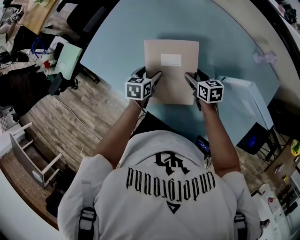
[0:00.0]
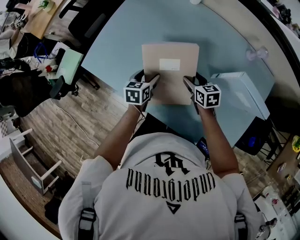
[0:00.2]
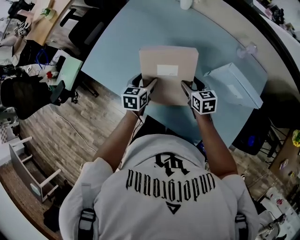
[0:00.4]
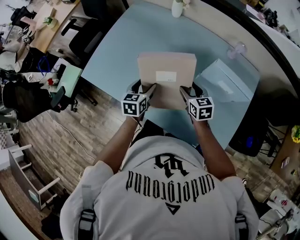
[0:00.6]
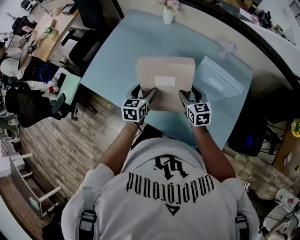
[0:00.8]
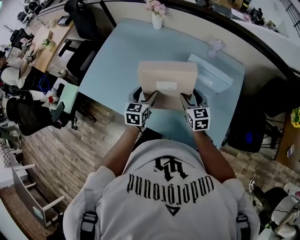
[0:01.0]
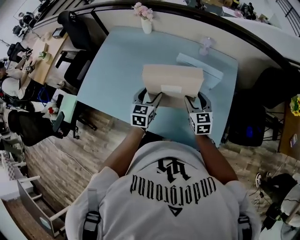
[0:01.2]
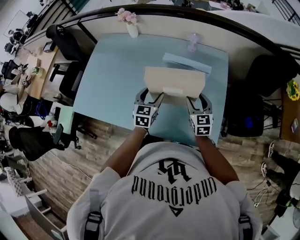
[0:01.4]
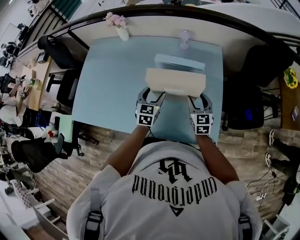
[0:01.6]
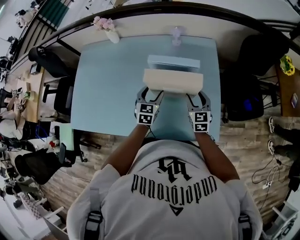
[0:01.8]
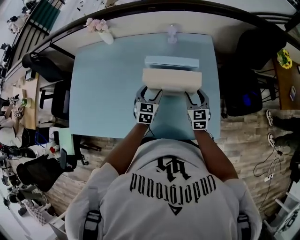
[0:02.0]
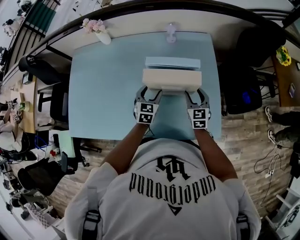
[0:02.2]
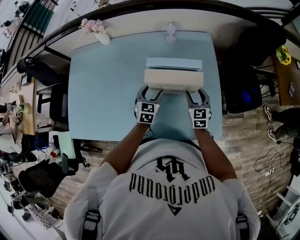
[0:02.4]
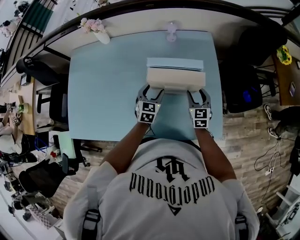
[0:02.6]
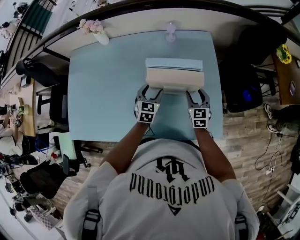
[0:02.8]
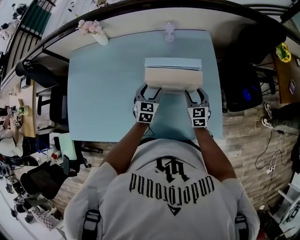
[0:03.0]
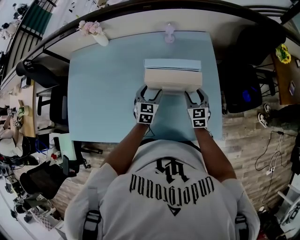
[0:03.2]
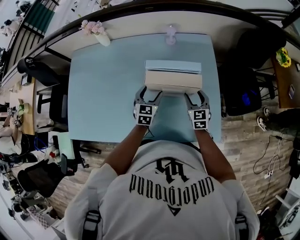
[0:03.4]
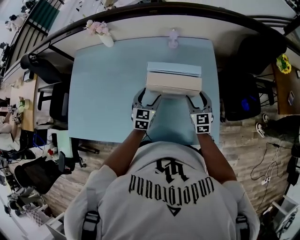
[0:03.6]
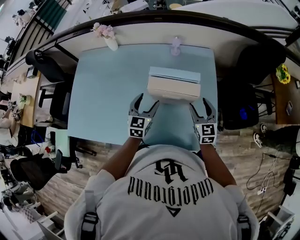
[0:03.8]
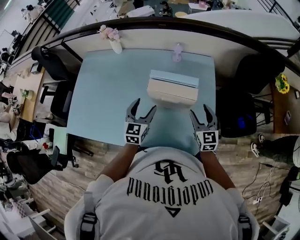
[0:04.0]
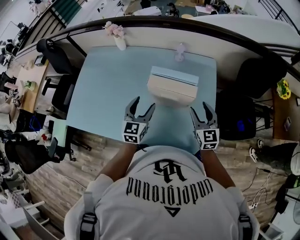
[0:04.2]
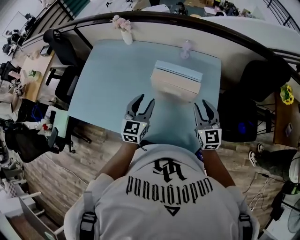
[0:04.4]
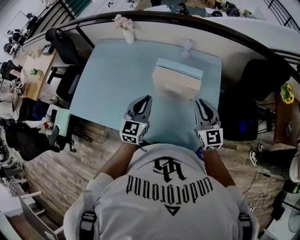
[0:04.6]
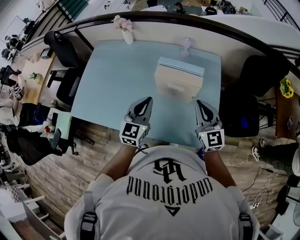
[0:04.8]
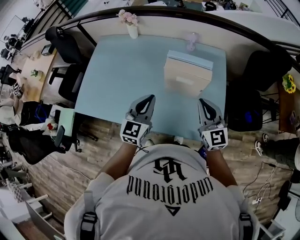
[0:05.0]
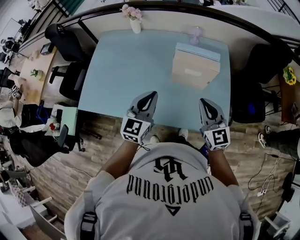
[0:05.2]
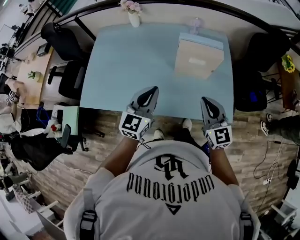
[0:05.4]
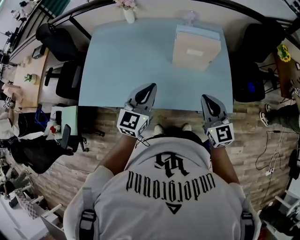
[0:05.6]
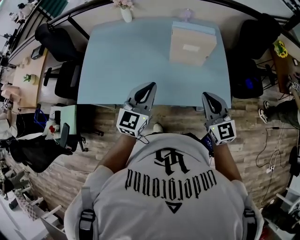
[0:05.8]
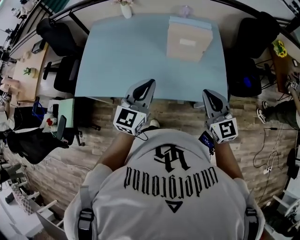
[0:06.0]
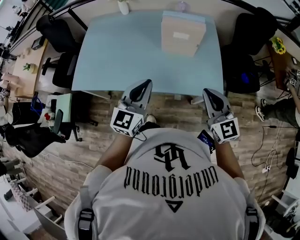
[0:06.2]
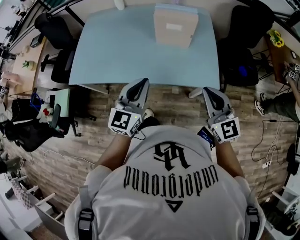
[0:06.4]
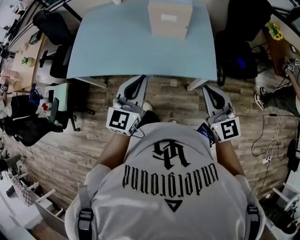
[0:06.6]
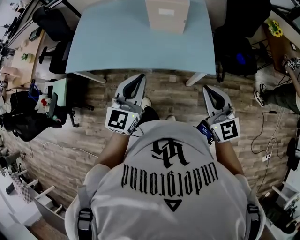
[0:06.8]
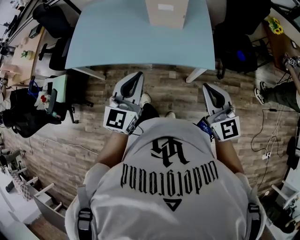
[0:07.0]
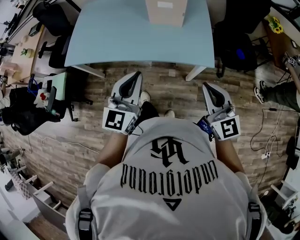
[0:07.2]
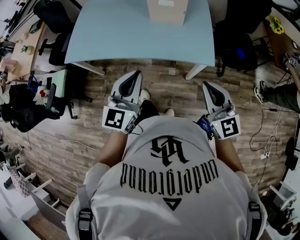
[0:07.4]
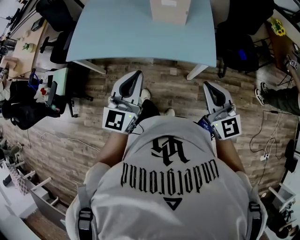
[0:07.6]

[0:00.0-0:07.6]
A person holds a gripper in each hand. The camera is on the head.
0:00.0 to 0:01.6: The right gripper ends up about 40 cm from where it was, and swivels approximately 50 degrees. Meanwhile the left gripper shifts by approximately 40 cm, and twists some 40 degrees clockwise, seen from behind.
0:01.6 to 0:03.0: The left gripper shifts about 10 cm downward and forward. The right gripper travels downward by about 5 cm.
0:03.0 to 0:04.6: The grippers both shift upward and backward by roughly 25 cm. The left gripper changes its angle by some 30 degrees, and closes up; the right gripper rotates approximately 30 degrees, and closes up.
0:04.6 to 0:06.0: The two grippers go roughly 25 cm backward and to the left.
0:06.0 to 0:07.6: The left gripper moves backward, about 20 cm, while the right gripper shifts some 25 cm backward and to the right.

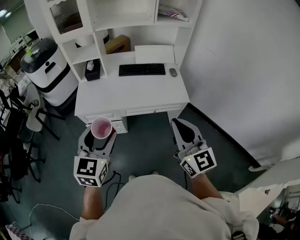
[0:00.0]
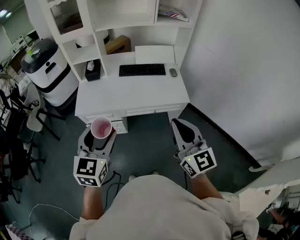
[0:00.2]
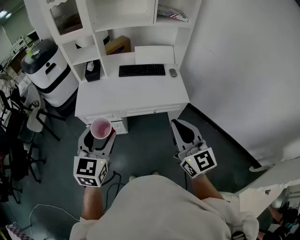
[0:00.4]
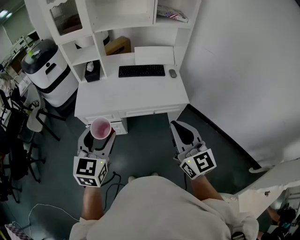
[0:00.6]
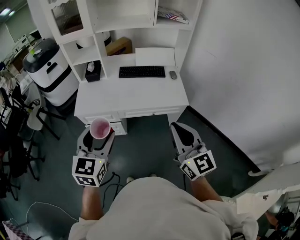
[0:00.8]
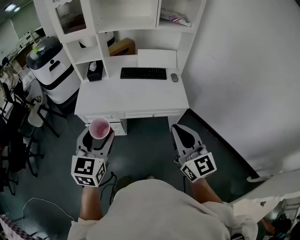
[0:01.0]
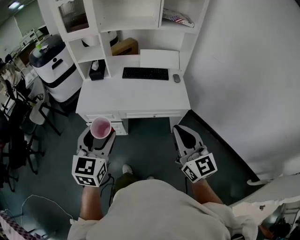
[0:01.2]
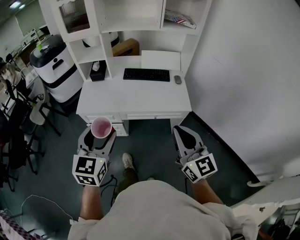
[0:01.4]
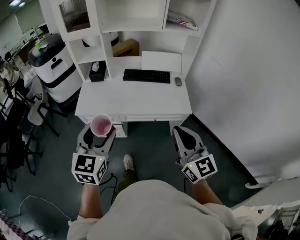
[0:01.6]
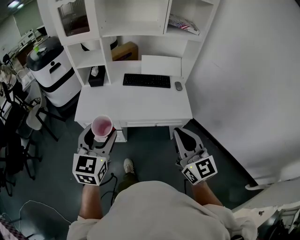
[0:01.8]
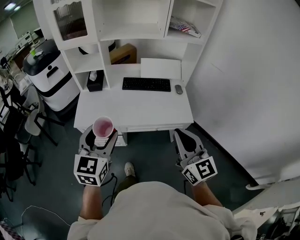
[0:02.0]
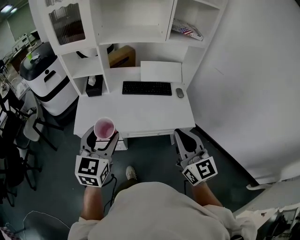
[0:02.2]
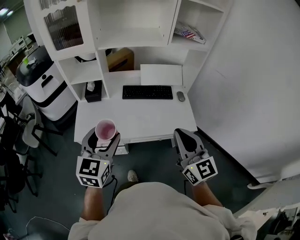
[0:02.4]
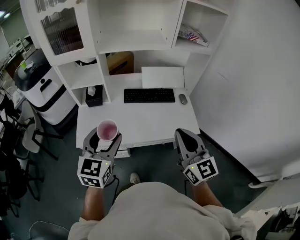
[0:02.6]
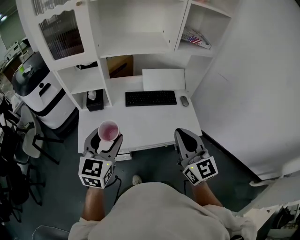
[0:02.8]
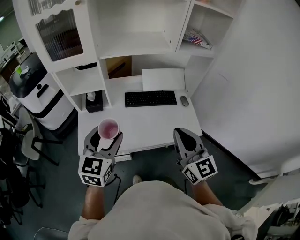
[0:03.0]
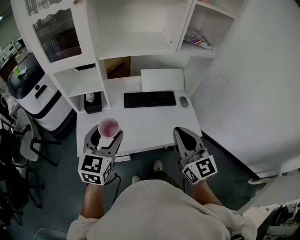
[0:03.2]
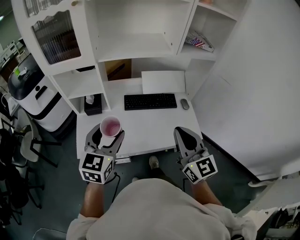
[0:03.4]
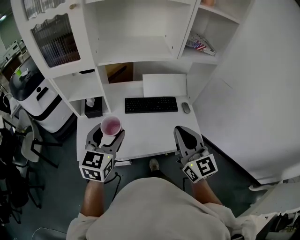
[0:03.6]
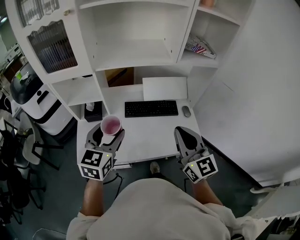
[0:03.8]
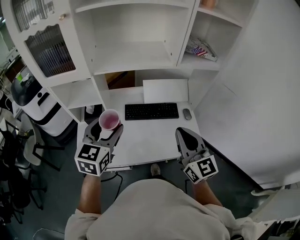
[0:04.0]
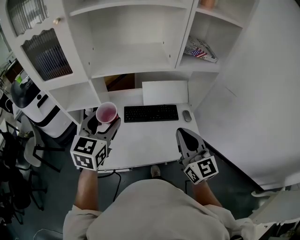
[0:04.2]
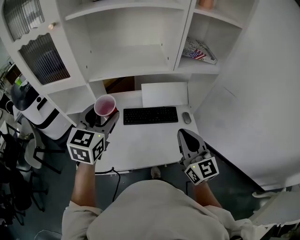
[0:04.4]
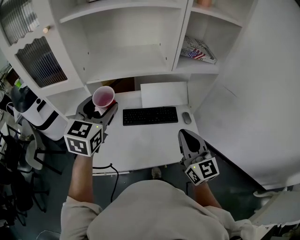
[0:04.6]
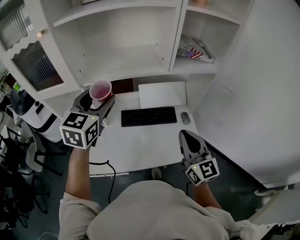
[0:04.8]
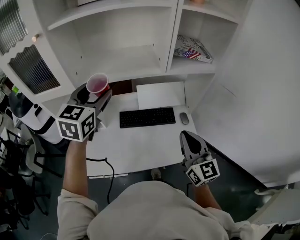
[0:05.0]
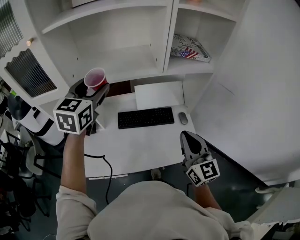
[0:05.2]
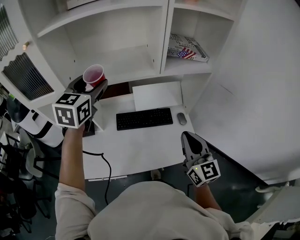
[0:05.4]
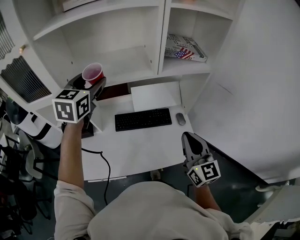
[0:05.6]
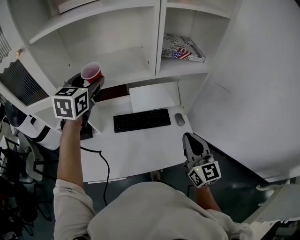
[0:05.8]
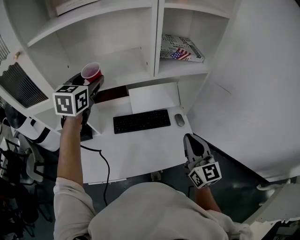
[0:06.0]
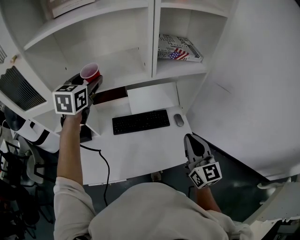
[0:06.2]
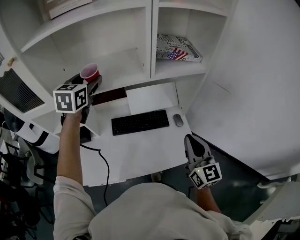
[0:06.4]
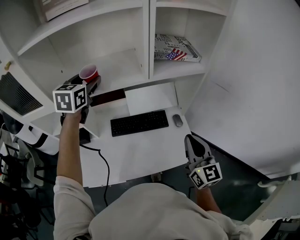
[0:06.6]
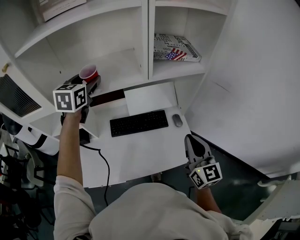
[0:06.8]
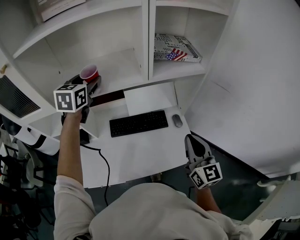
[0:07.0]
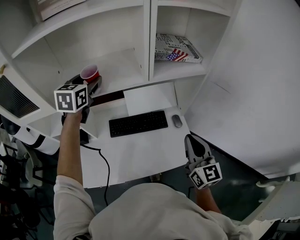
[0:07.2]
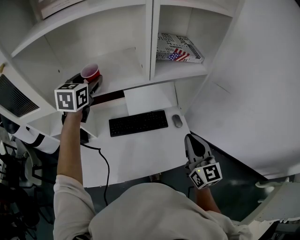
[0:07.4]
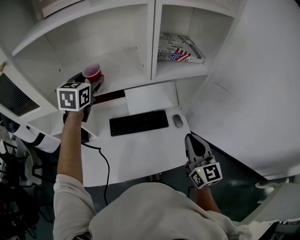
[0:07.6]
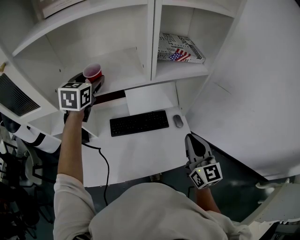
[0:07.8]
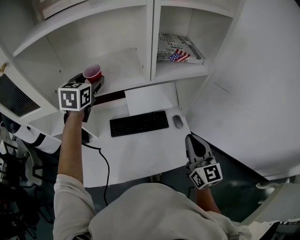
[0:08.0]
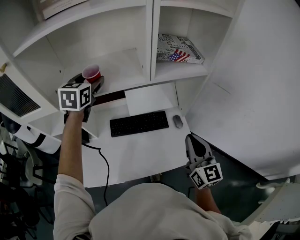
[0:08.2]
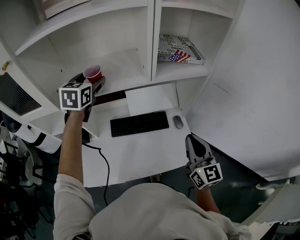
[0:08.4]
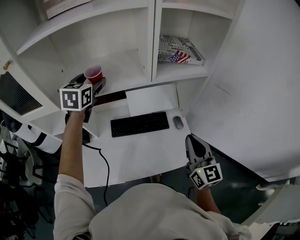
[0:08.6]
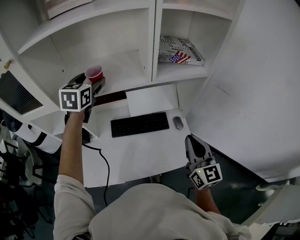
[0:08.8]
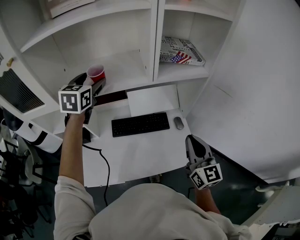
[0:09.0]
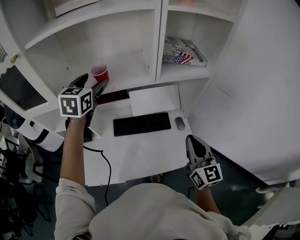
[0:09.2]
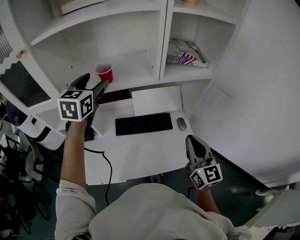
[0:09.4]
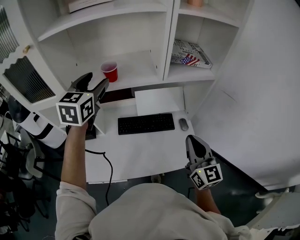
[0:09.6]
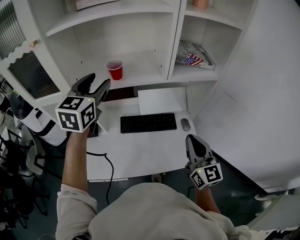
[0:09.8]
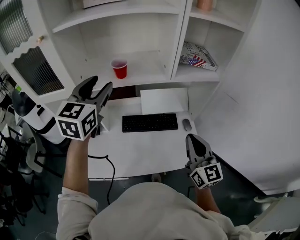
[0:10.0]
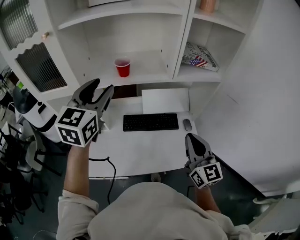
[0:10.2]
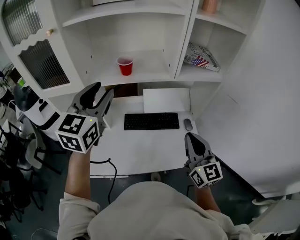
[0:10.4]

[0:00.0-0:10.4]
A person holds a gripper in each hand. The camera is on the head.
0:00.0 to 0:01.4: The grippers stay close to where they were, moving slightly.
0:01.4 to 0:03.0: The left gripper is displaced forward by about 30 cm. Meanwhile the right gripper travels forward and to the left by about 30 cm.
0:03.0 to 0:04.4: The right gripper heads forward and to the right, covering some 15 cm, while the left gripper travels forward by about 20 cm.
0:04.4 to 0:06.0: The right gripper heads to the right, covering about 10 cm. The left gripper travels forward by some 20 cm.
0:06.0 to 0:07.4: The left gripper shifts approximately 5 cm forward.
0:07.4 to 0:09.0: The grippers stay close to where they were, moving slightly.
0:09.0 to 0:10.4: The left gripper goes some 20 cm backward and upward, and closes its fingers, while the right gripper moves to the left, approximately 10 cm.

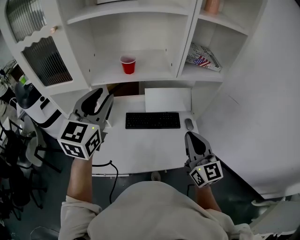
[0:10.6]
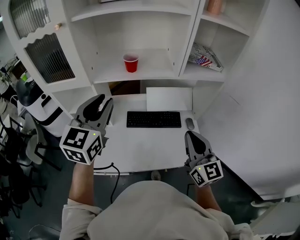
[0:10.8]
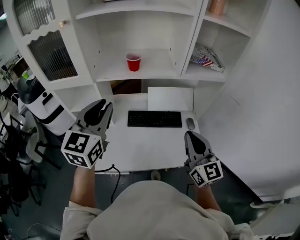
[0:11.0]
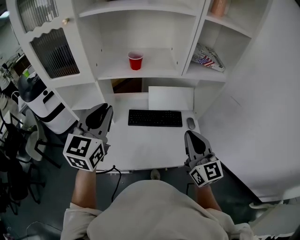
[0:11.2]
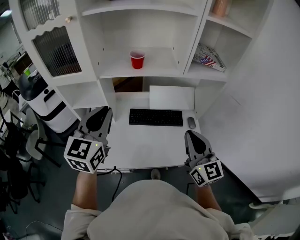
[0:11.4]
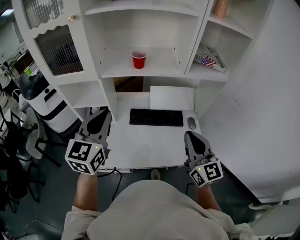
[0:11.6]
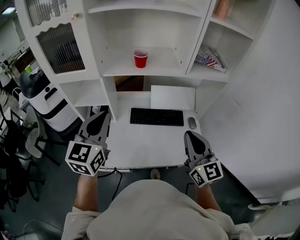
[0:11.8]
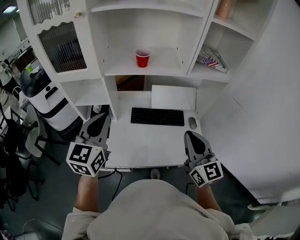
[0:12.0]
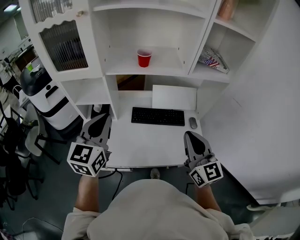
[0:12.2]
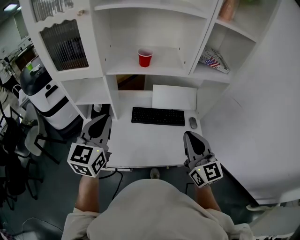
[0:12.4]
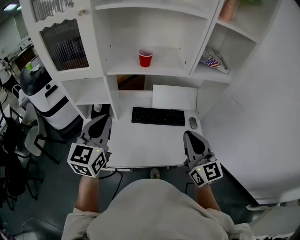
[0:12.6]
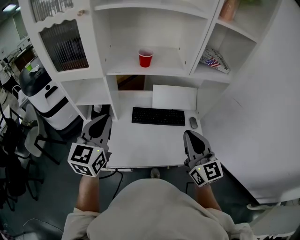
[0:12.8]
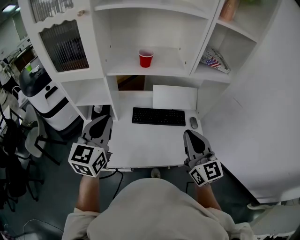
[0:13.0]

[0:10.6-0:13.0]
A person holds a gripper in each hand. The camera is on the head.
0:10.6 to 0:11.8: The left gripper moves backward, downward and to the left, about 10 cm, and closes up. The right gripper ends up roughly 5 cm from where it was.
0:11.8 to 0:13.0: The grippers make only small movements.

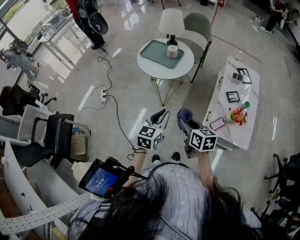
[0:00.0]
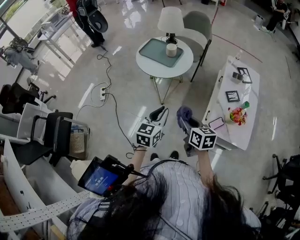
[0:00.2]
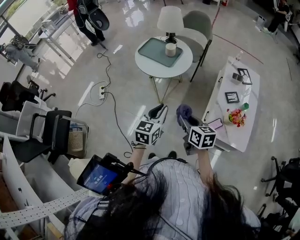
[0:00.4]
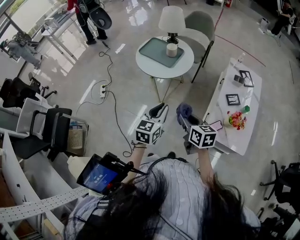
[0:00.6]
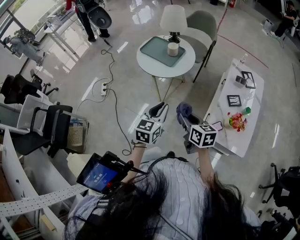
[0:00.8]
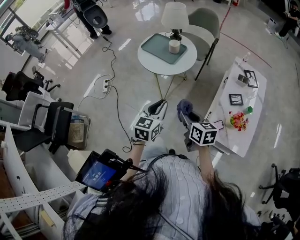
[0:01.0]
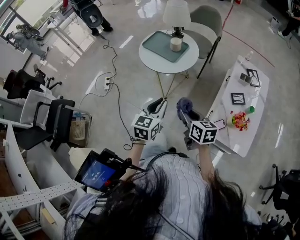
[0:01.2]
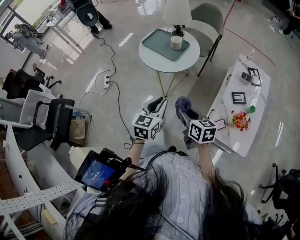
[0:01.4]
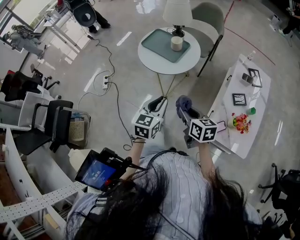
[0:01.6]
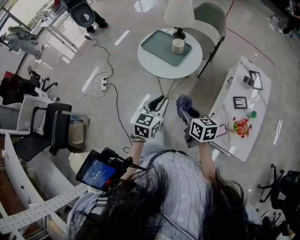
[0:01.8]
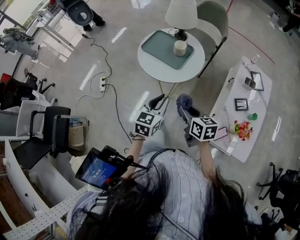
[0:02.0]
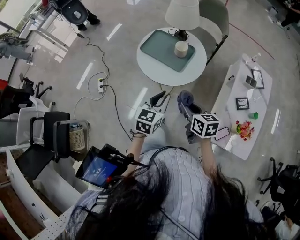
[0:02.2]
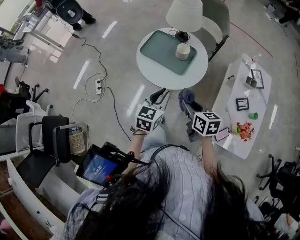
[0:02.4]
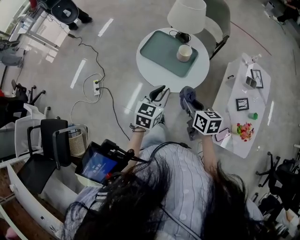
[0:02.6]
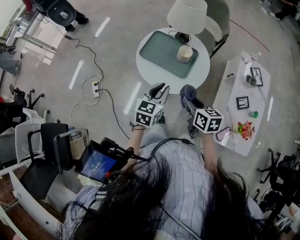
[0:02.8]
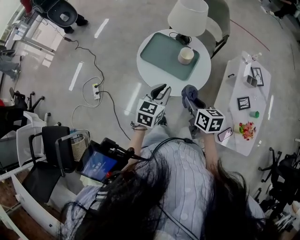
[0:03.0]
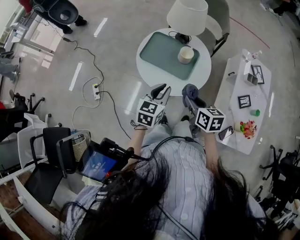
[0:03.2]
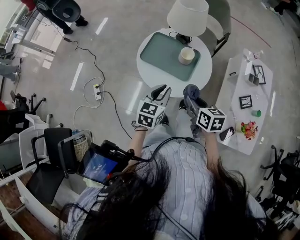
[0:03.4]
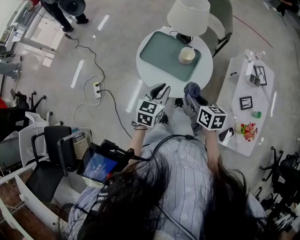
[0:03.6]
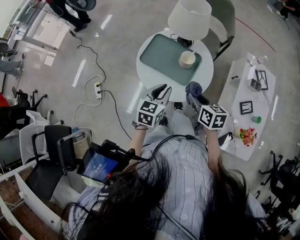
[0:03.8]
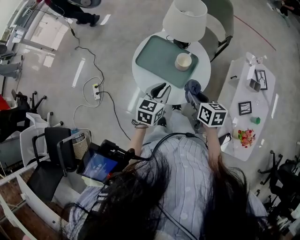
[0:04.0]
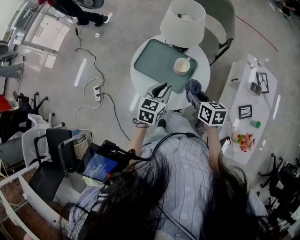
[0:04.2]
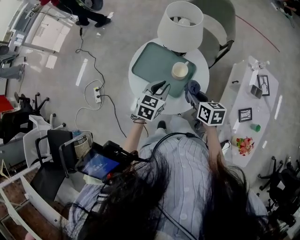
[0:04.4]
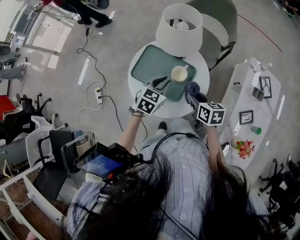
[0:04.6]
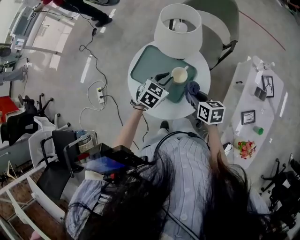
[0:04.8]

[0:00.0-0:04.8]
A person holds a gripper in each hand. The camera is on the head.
0:00.0 to 0:01.6: Both grippers move forward, roughly 10 cm.
0:01.6 to 0:03.2: The grippers both shift forward by approximately 25 cm.
0:03.2 to 0:04.8: Both grippers travel together forward, about 20 cm. The left gripper turns by approximately 20 degrees.
